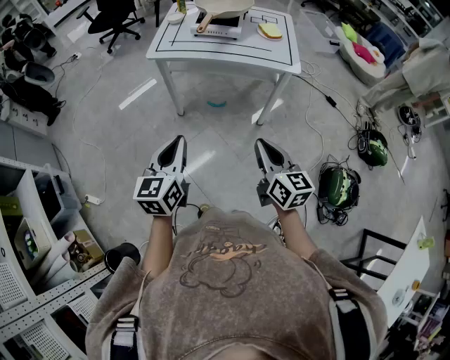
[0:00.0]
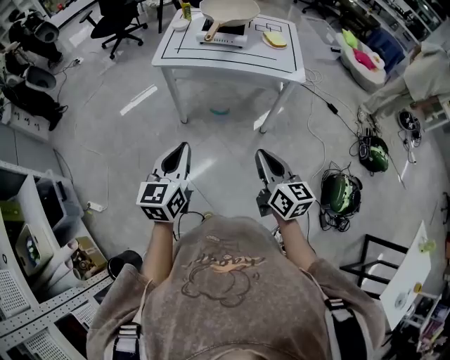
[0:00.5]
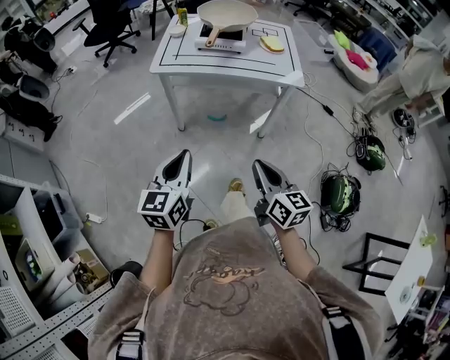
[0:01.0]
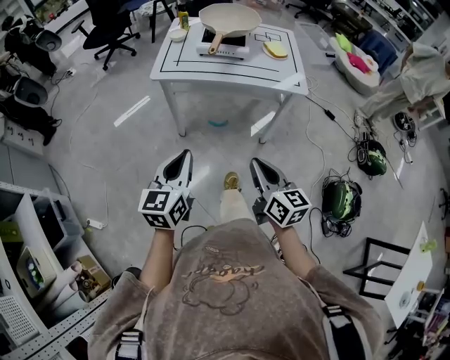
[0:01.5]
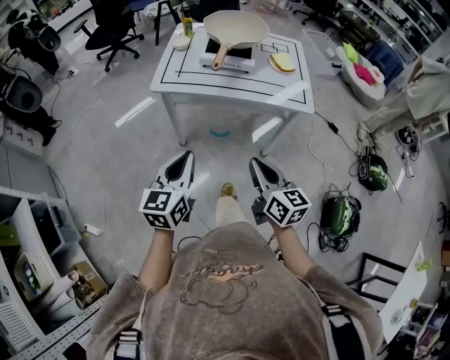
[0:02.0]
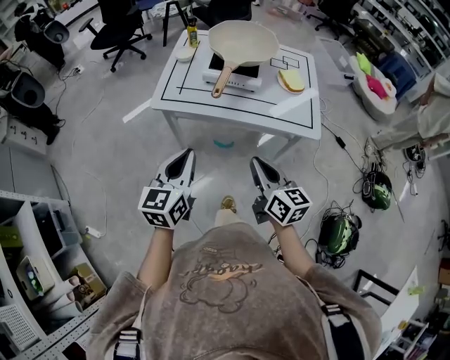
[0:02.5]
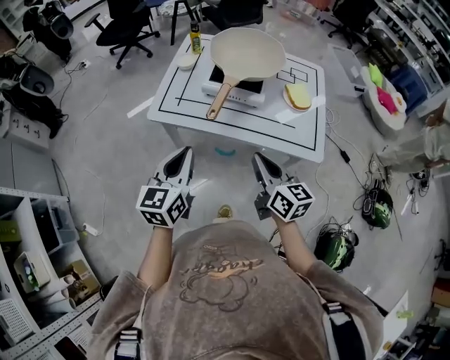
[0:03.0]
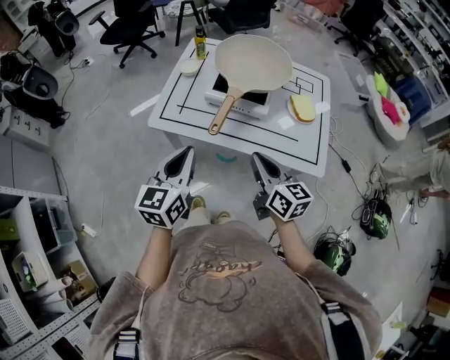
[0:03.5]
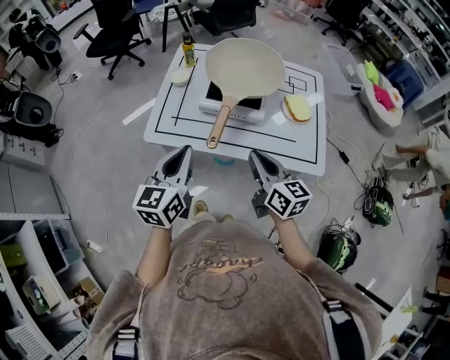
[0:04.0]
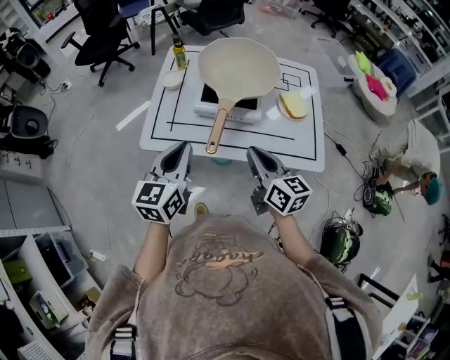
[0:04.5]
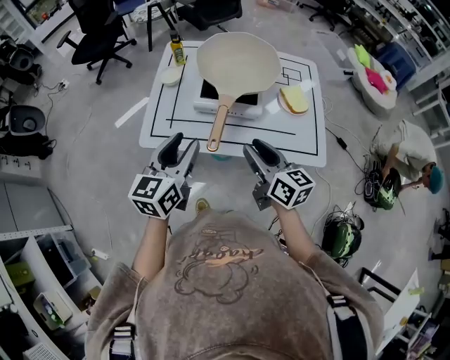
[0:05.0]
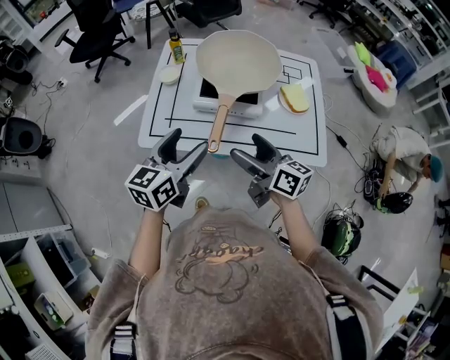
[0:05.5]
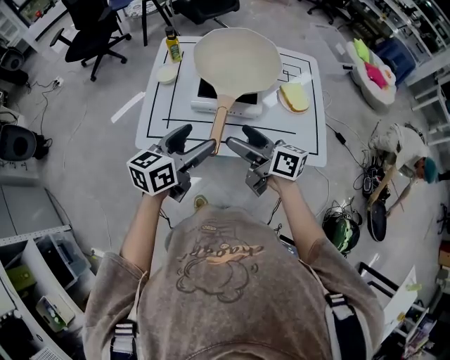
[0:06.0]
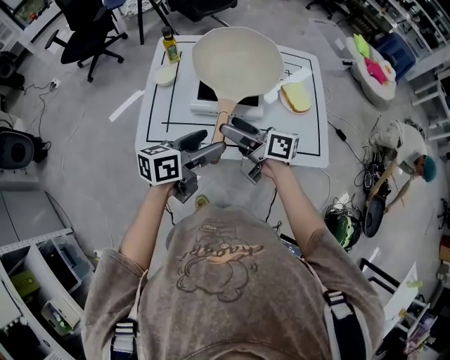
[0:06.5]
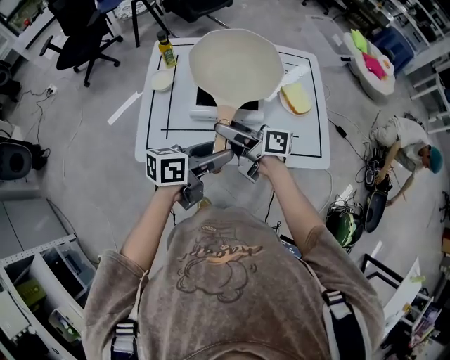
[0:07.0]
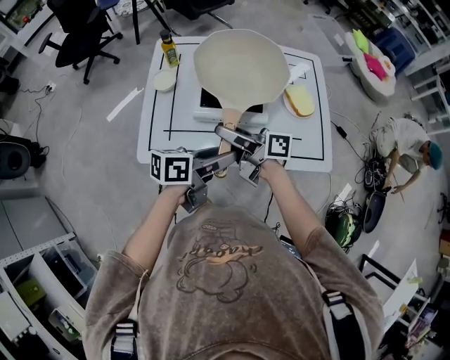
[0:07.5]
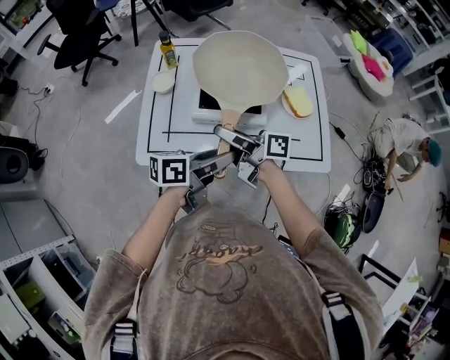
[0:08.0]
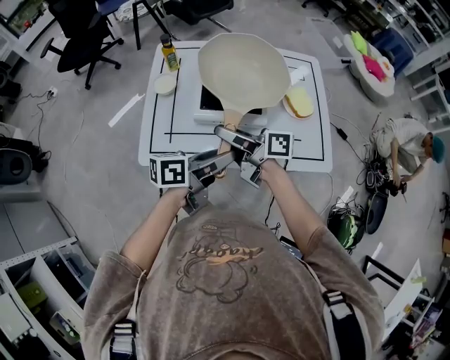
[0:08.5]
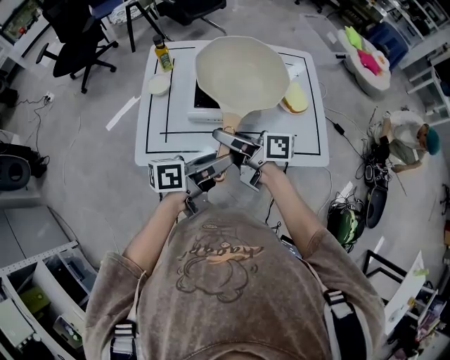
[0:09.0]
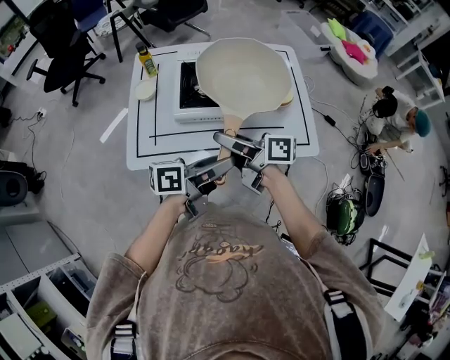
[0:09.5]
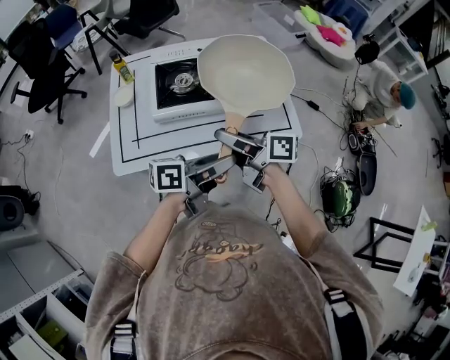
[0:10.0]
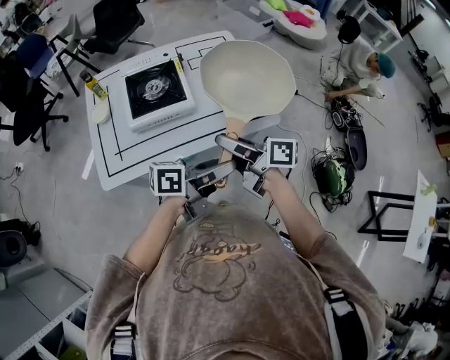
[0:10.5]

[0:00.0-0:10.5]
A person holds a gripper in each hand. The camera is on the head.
0:00.0 to 0:02.0: The right gripper travels forward and to the left by roughly 15 cm. Meanwhile the left gripper shifts approximately 15 cm forward.
0:02.0 to 0:04.0: Both grippers move forward, about 30 cm.
0:04.0 to 0:06.5: The right gripper goes about 15 cm forward and to the left, turns by about 30 degrees, and opens up; the left gripper shifts approximately 10 cm forward, to the right and downward, swivels about 40 degrees, and opens its fingers.
0:06.5 to 0:08.5: The right gripper closes, while the left gripper closes its fingers.
0:08.5 to 0:10.5: The two grippers go roughly 20 cm to the right and backward. The right gripper swivels some 20 degrees, while the left gripper changes its angle by about 30 degrees.

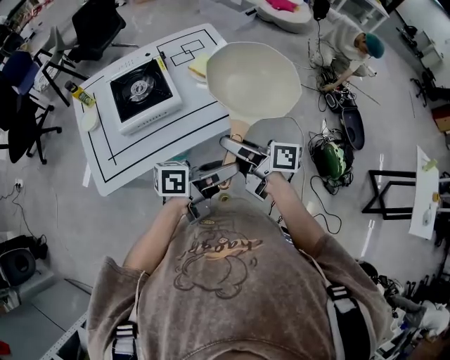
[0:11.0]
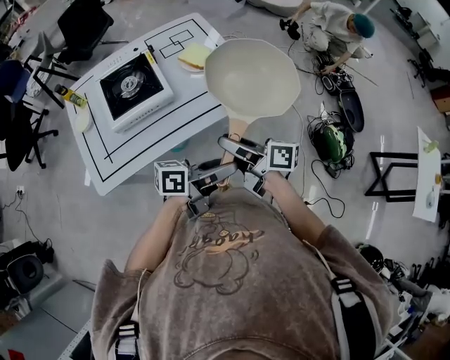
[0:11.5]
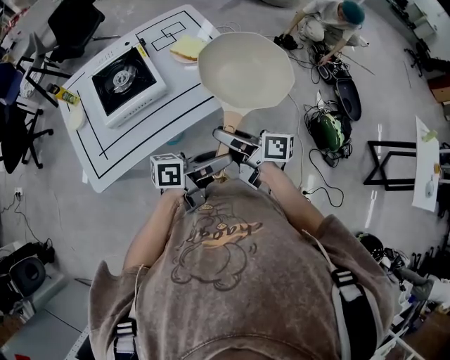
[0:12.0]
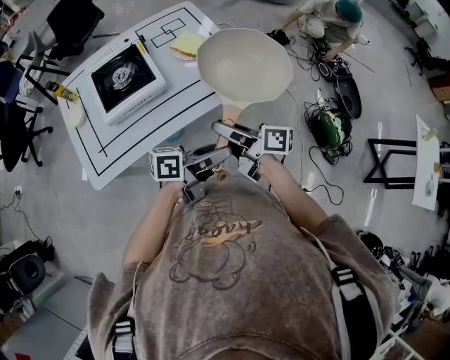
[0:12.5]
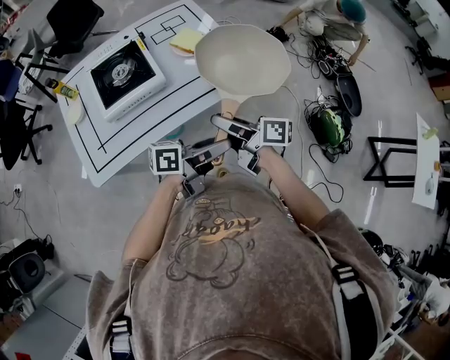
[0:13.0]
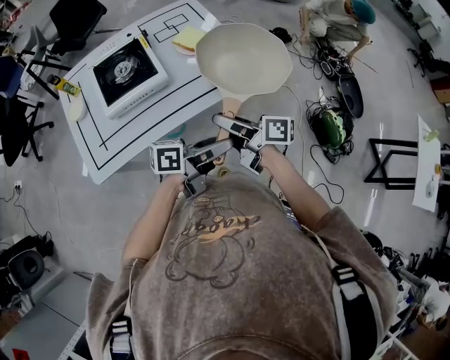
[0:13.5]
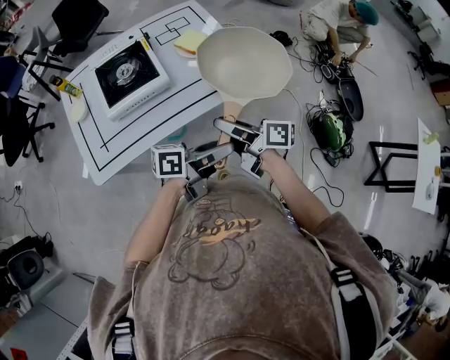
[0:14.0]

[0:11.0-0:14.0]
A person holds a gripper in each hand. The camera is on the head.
0:11.0 to 0:12.5: The grippers move only a little.
0:12.5 to 0:14.0: Both grippers stay put.

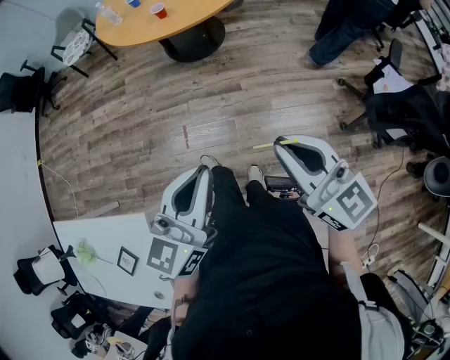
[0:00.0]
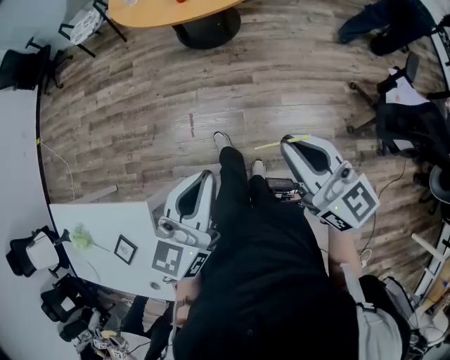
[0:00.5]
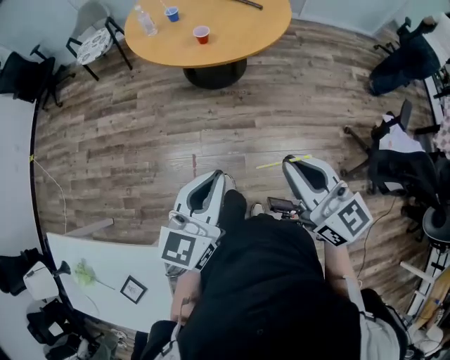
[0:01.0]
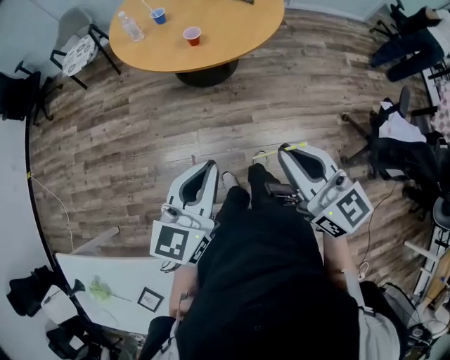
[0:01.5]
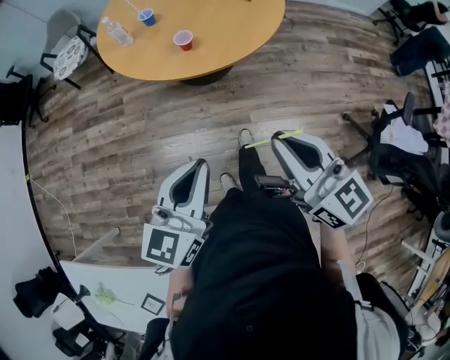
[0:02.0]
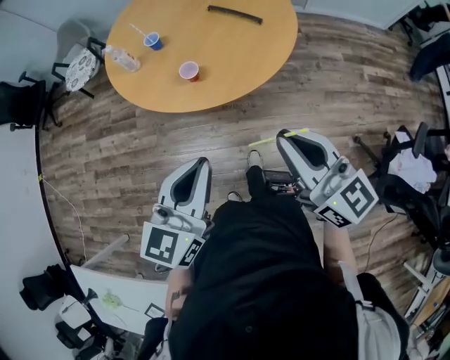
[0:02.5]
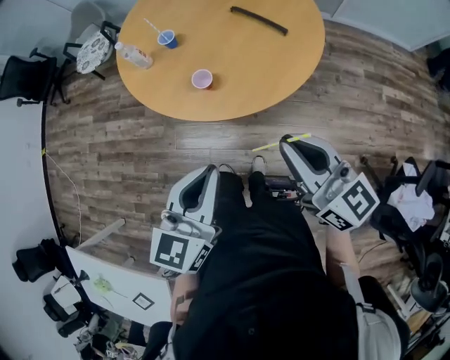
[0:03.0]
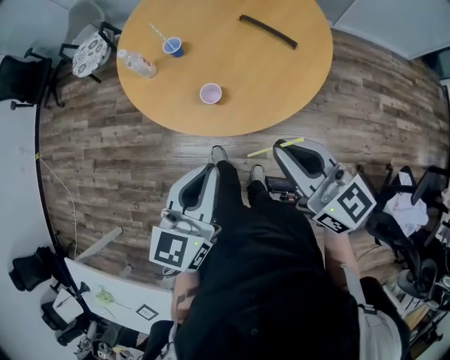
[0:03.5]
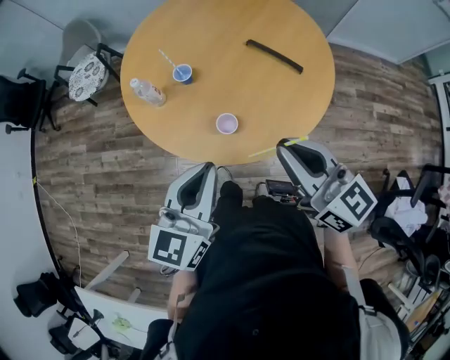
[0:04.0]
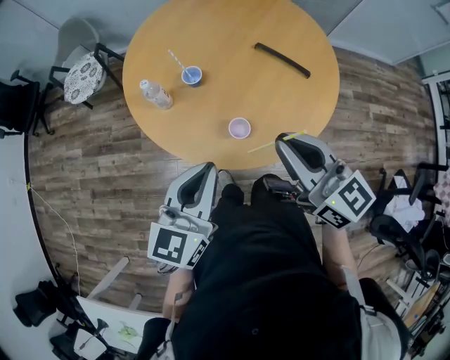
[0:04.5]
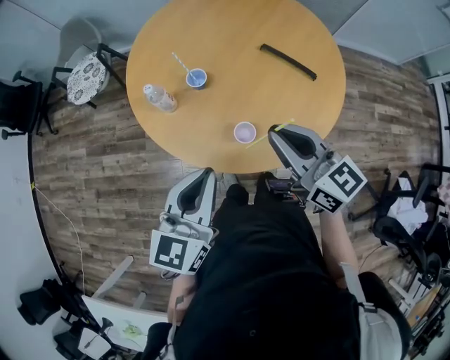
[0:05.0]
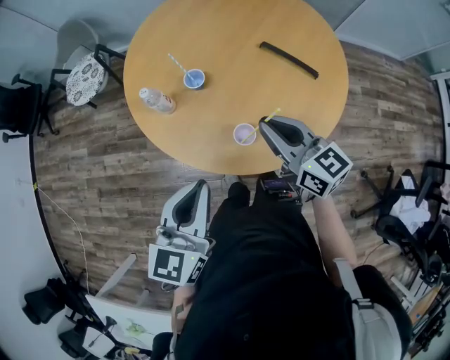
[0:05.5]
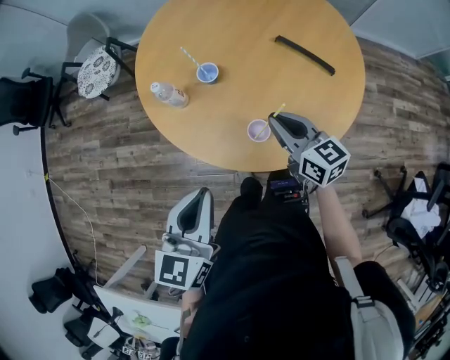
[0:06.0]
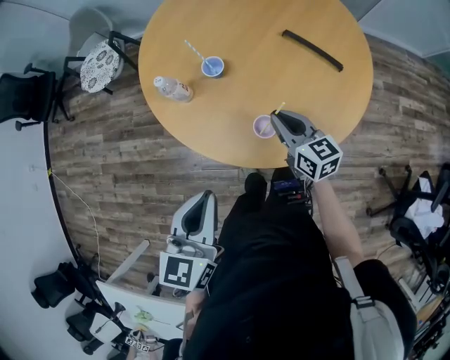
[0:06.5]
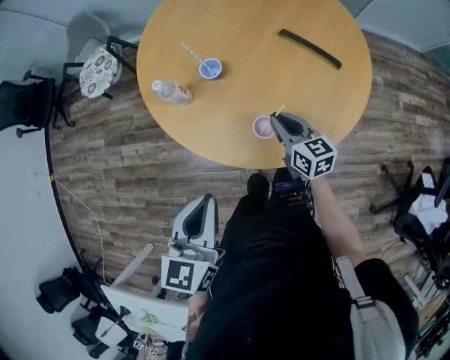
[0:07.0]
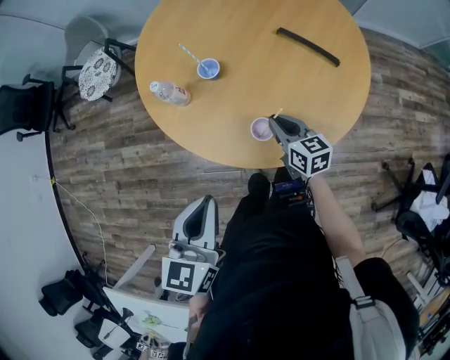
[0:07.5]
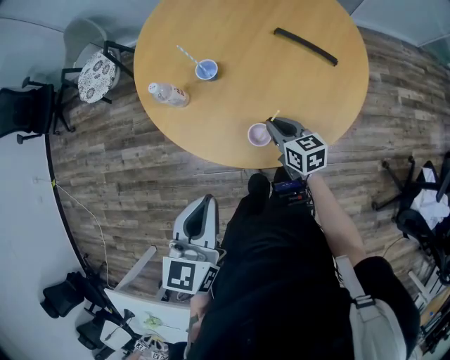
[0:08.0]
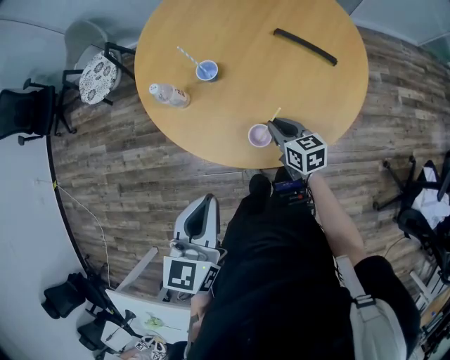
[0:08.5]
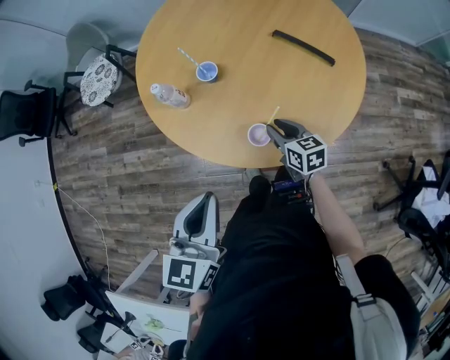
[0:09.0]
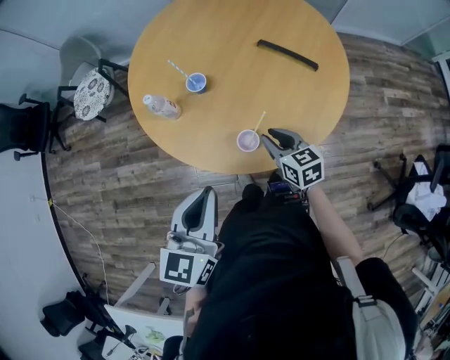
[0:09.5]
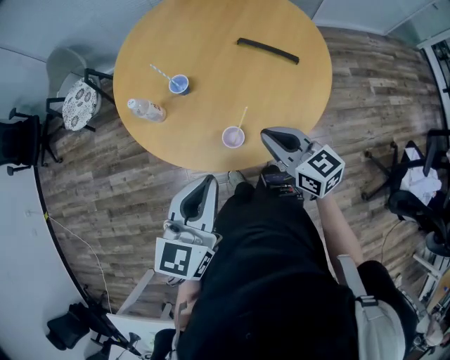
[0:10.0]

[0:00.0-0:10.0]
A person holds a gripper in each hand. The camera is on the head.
0:00.0 to 0:02.0: The grippers both shift forward by about 30 cm.
0:02.0 to 0:04.0: Both grippers move forward, approximately 35 cm.
0:04.0 to 0:06.0: The left gripper heads to the left, covering roughly 10 cm. Meanwhile the right gripper shifts roughly 20 cm downward and forward.
0:06.0 to 0:08.0: The right gripper shifts about 15 cm downward.
0:08.0 to 0:10.0: The left gripper moves to the right, some 5 cm. Meanwhile the right gripper moves upward and backward, approximately 15 cm, and opens, then closes once more.

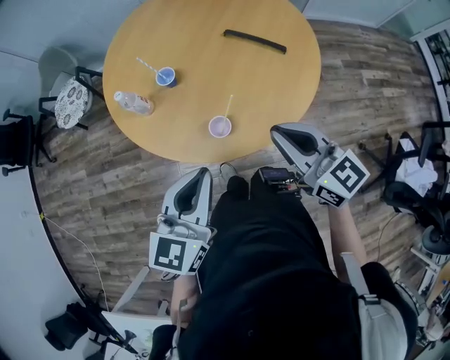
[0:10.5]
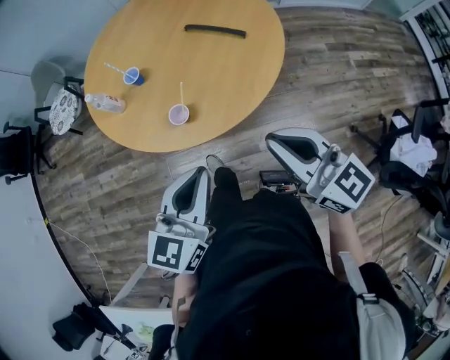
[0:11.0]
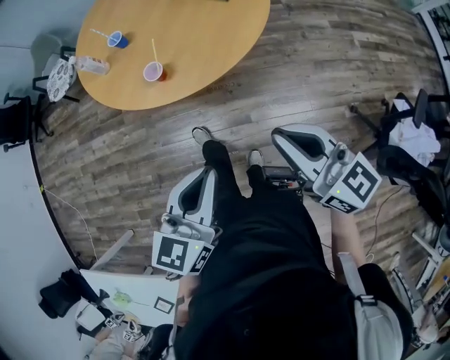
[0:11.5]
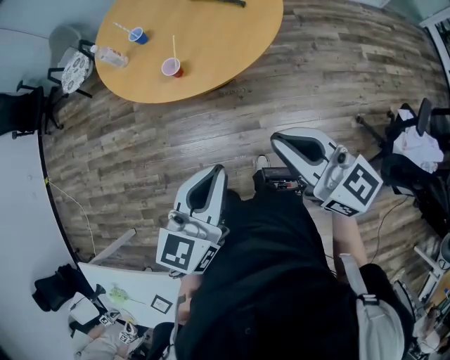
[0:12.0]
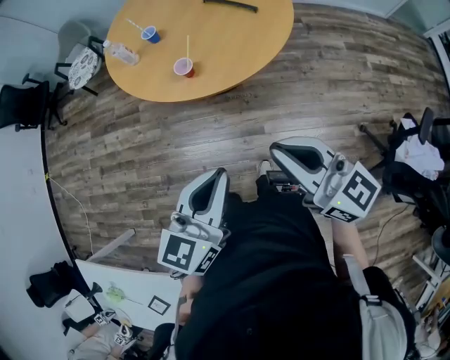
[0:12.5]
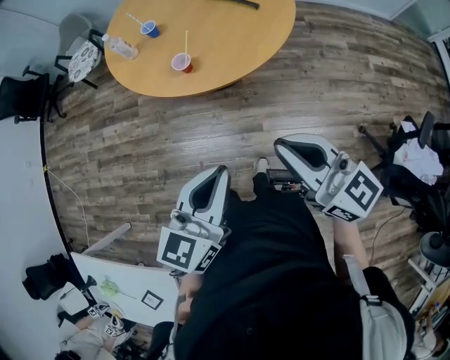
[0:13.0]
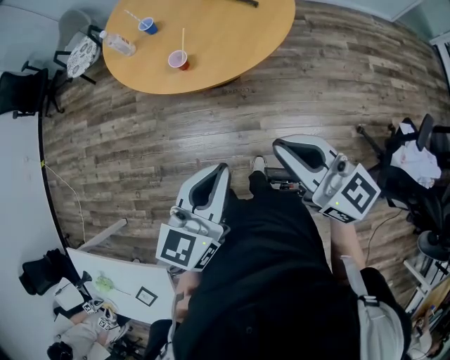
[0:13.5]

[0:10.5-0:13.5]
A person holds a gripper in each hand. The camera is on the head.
0:10.5 to 0:12.0: The grippers both shift backward and to the right by approximately 30 cm.
0:12.0 to 0:13.5: The grippers make only small movements.
